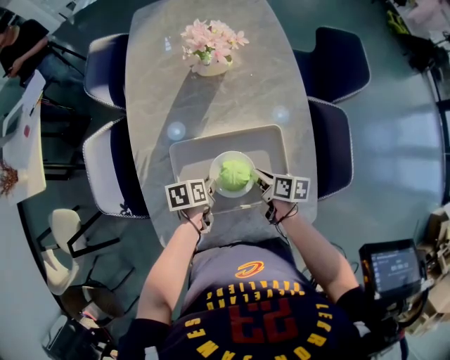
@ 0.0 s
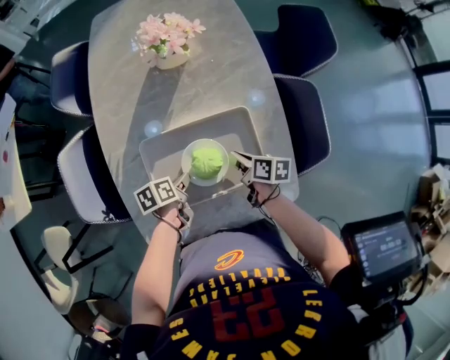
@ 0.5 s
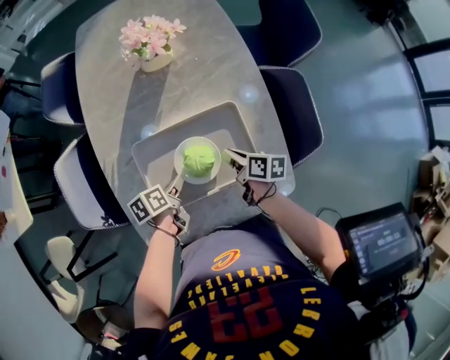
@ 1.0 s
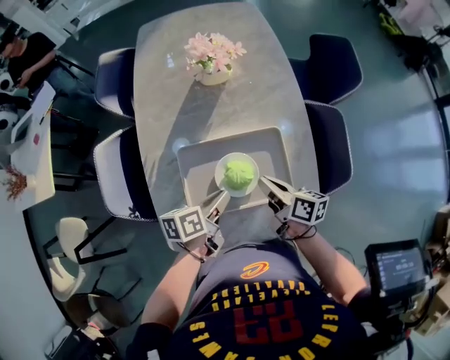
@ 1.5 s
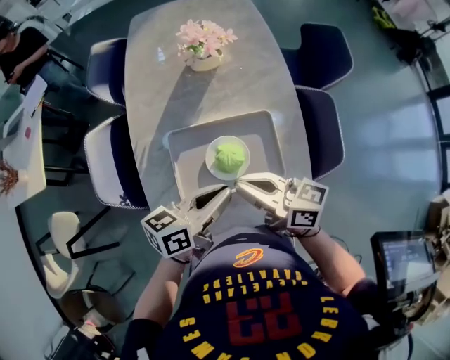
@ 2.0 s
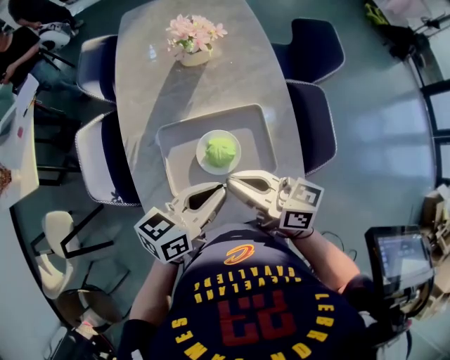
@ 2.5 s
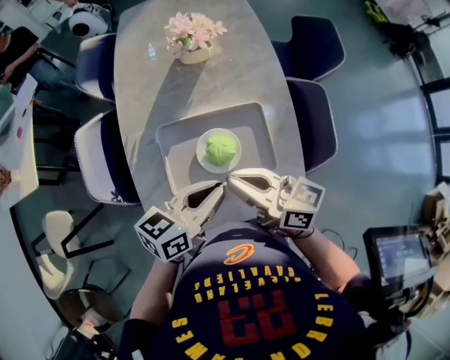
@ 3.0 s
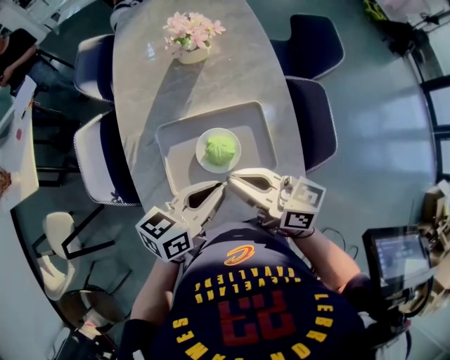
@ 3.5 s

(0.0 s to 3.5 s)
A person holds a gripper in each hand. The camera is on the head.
0.0 s - 2.0 s: The right gripper is displaced upward by about 25 cm, and tilts its fingers approximately 40 degrees upward.

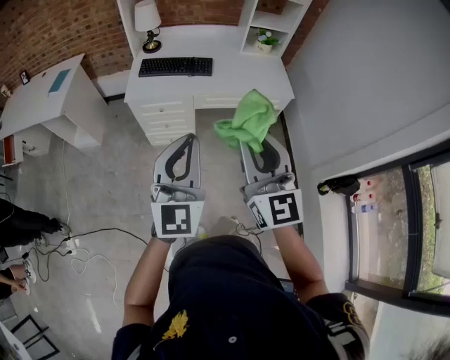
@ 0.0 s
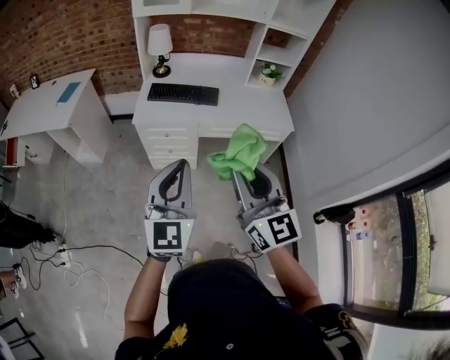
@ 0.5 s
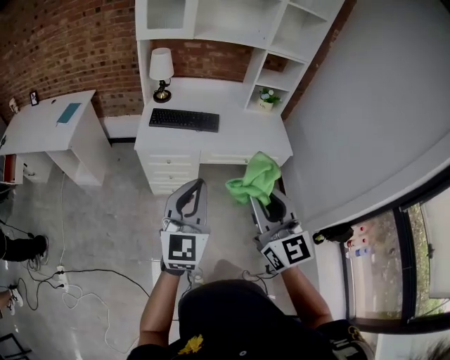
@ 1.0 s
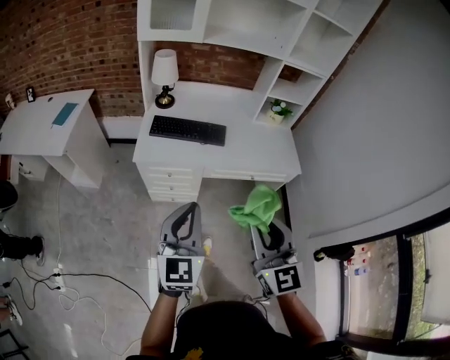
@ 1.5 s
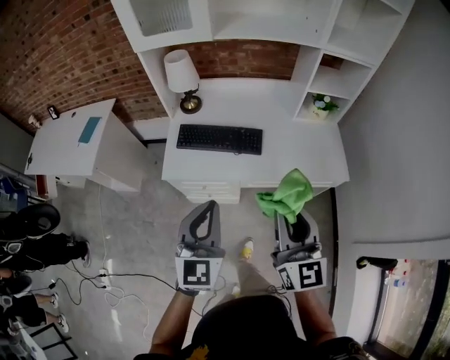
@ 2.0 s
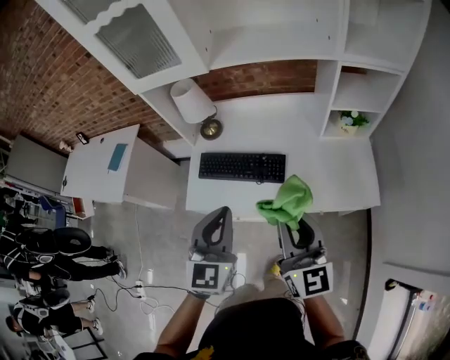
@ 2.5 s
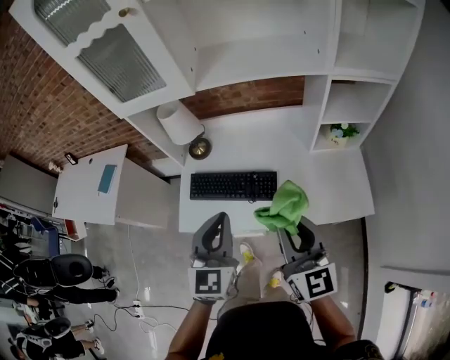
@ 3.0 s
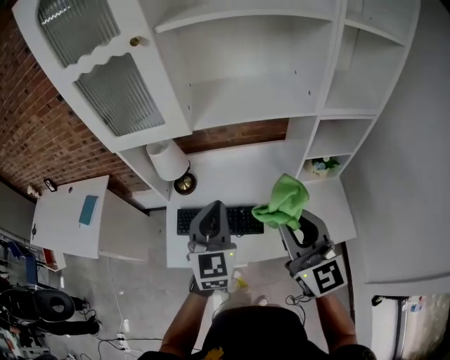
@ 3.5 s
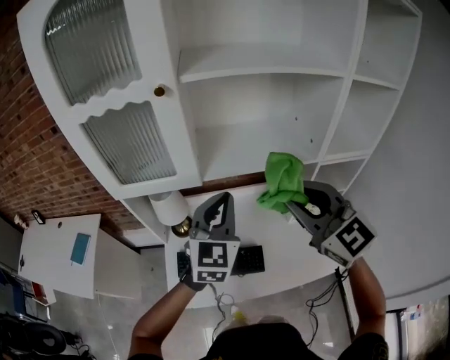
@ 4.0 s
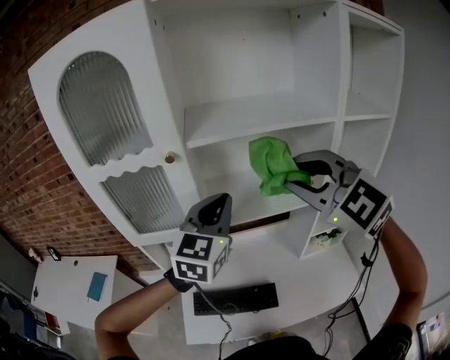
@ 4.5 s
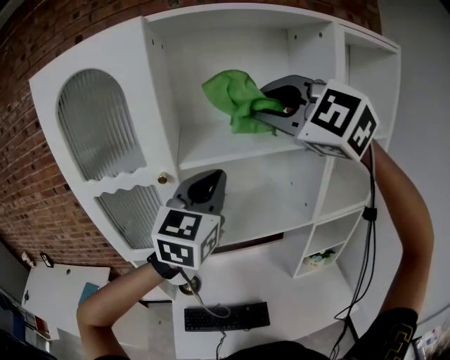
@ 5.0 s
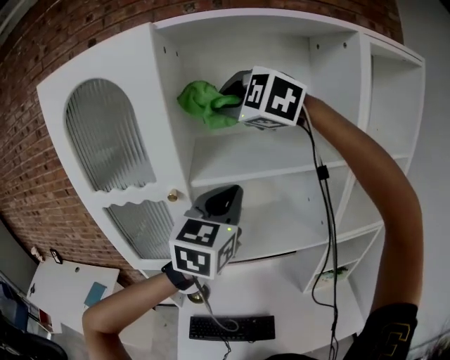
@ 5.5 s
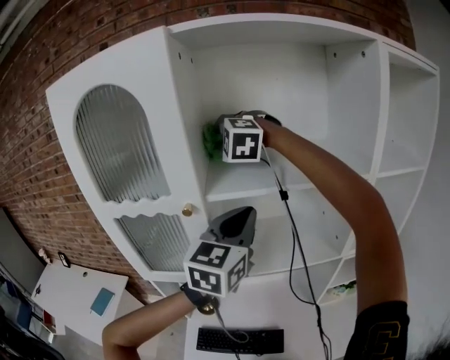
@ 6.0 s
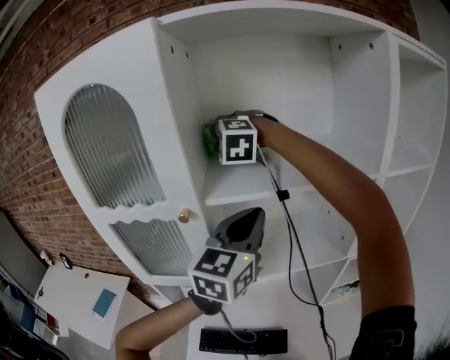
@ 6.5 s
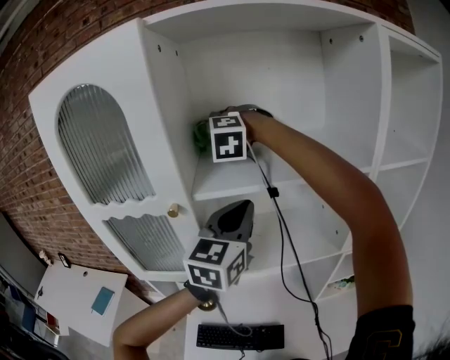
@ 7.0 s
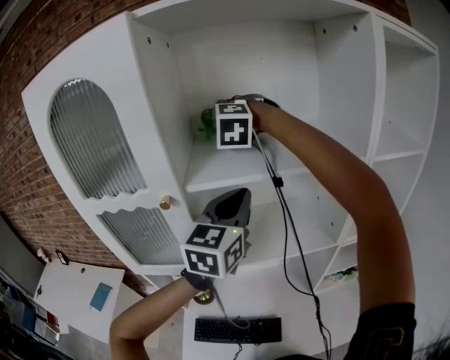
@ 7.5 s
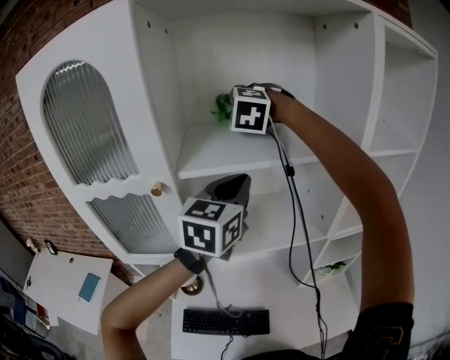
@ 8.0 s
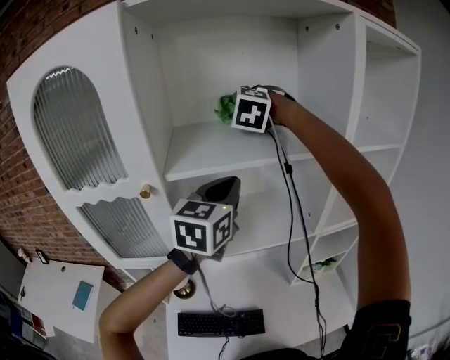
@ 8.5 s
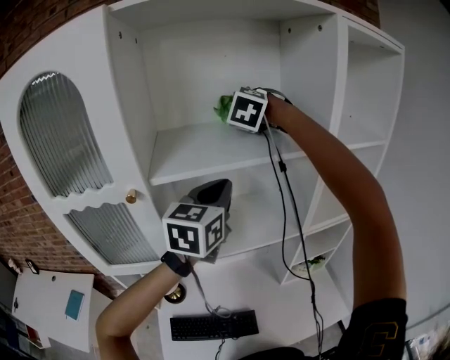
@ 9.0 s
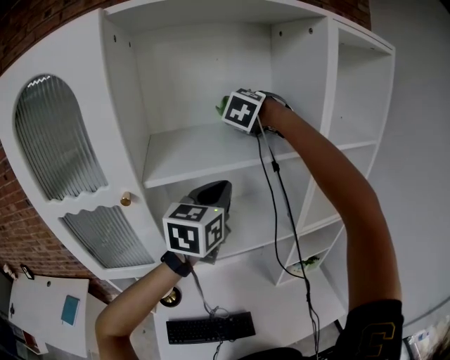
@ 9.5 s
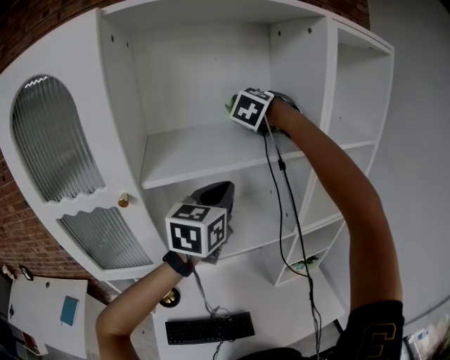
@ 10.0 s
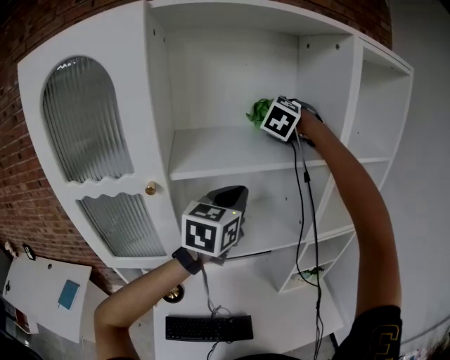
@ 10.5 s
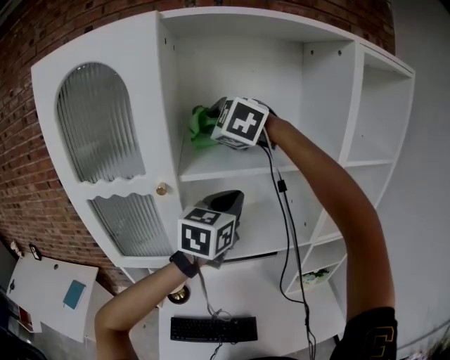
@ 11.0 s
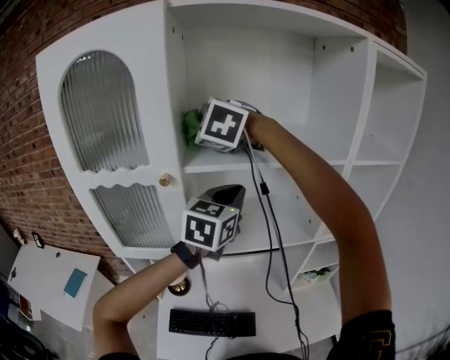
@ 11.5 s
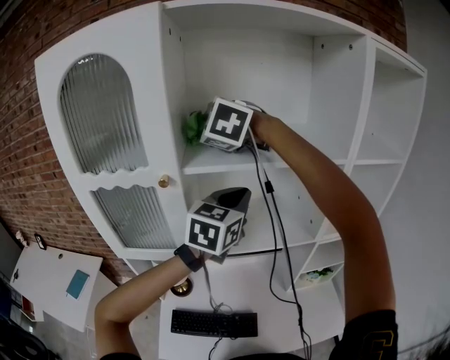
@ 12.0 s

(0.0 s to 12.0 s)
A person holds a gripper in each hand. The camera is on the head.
0.0 s - 2.0 s: The grippers both shift forward by some 30 cm.
2.0 s - 4.0 s: The right gripper goes about 40 cm forward and upward, and rotates some 30 degrees, while the left gripper shifts some 40 cm forward.
4.0 s - 6.0 s: The right gripper goes about 50 cm forward, upward and to the left, and rotates around the line of its fingers by approximately 60 degrees, counterclockwise from behind, while the left gripper moves upward and forward, about 25 cm.
6.0 s - 8.0 s: The right gripper shifts about 10 cm to the right; the left gripper ends up about 5 cm from where it was.
8.0 s - 10.0 s: The right gripper shifts some 20 cm to the right and forward, and turns by about 30 degrees. Meanwhile the left gripper shifts roughly 5 cm to the right.
10.0 s - 12.0 s: The right gripper travels to the left and backward by some 25 cm, and swivels some 40 degrees.

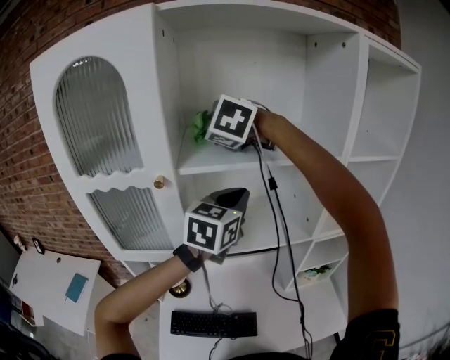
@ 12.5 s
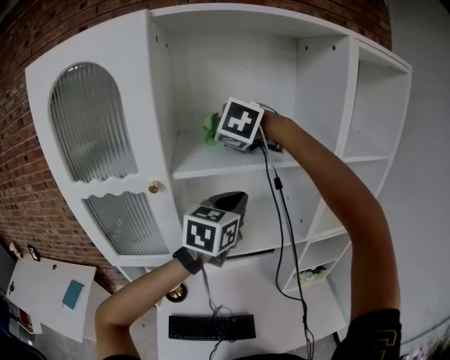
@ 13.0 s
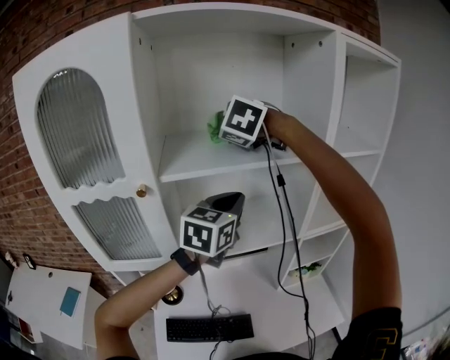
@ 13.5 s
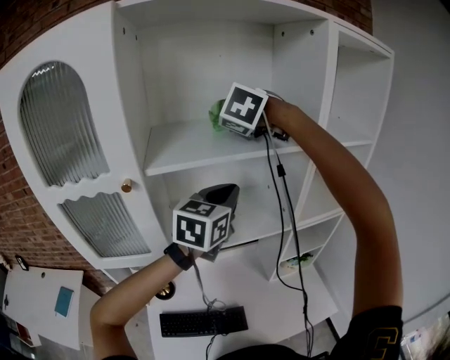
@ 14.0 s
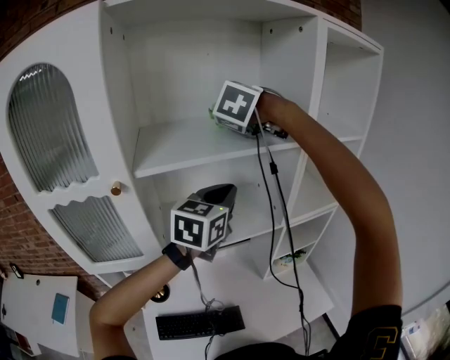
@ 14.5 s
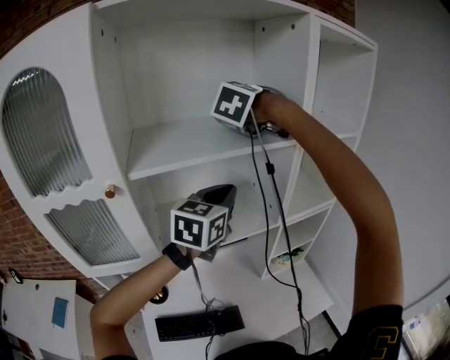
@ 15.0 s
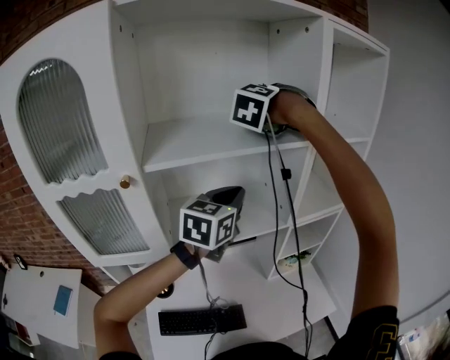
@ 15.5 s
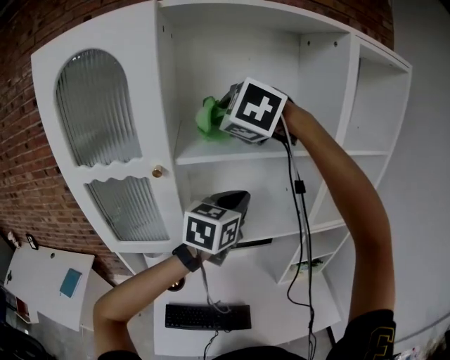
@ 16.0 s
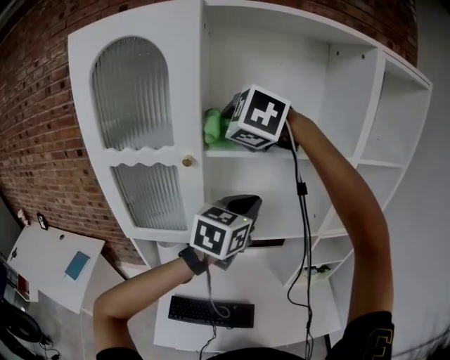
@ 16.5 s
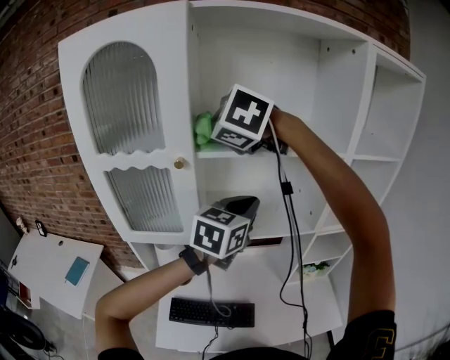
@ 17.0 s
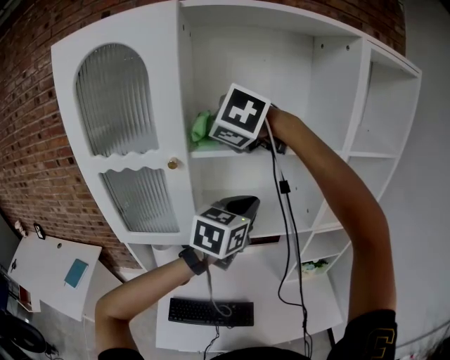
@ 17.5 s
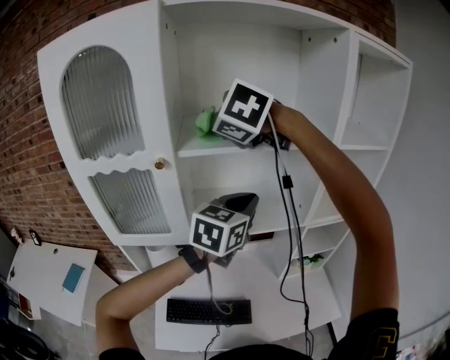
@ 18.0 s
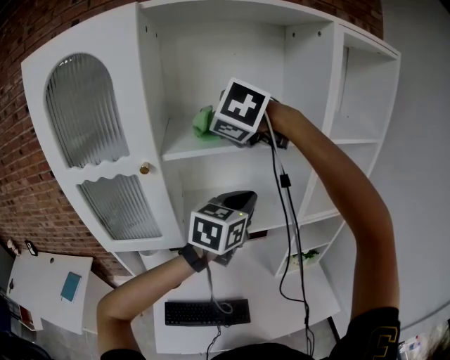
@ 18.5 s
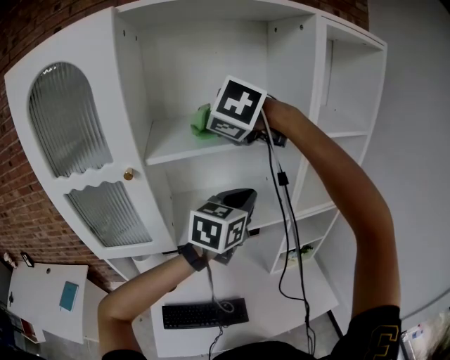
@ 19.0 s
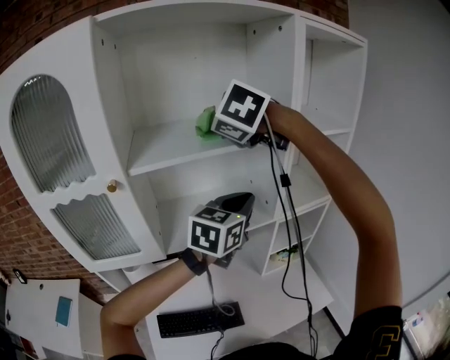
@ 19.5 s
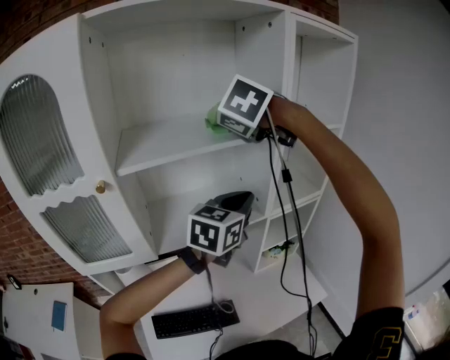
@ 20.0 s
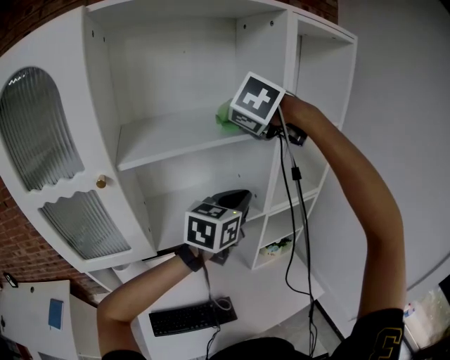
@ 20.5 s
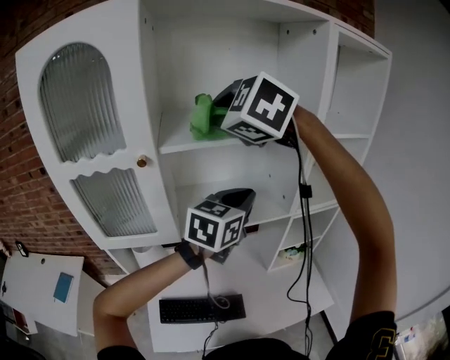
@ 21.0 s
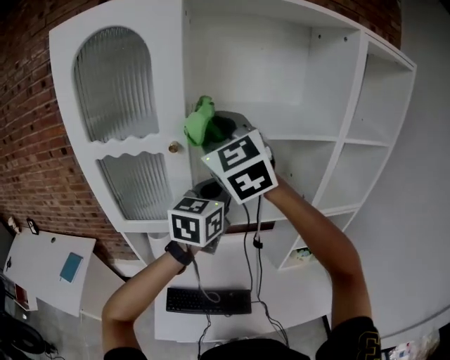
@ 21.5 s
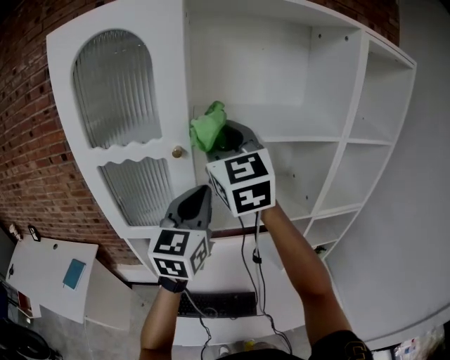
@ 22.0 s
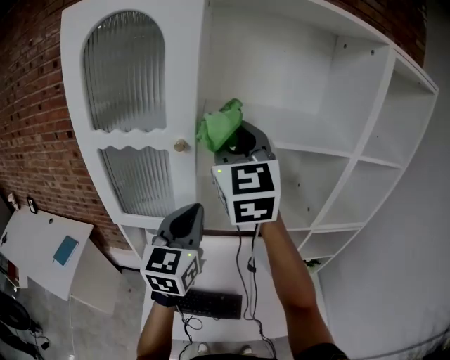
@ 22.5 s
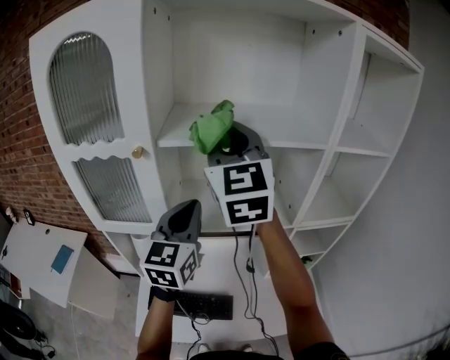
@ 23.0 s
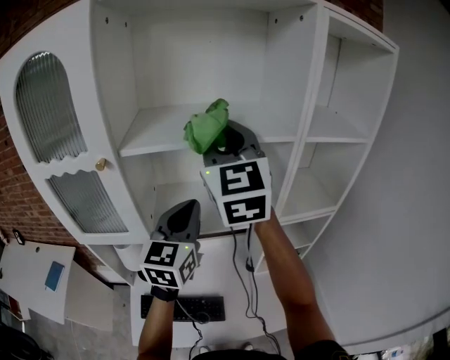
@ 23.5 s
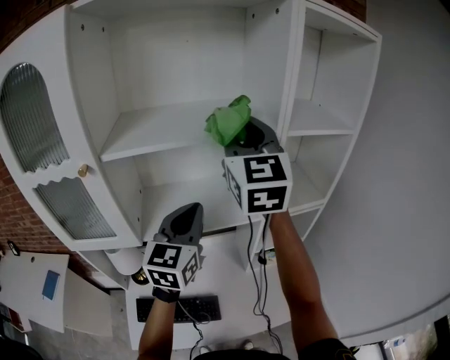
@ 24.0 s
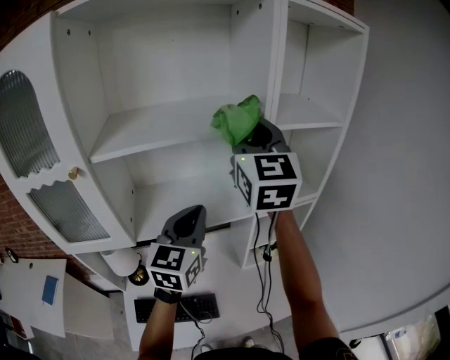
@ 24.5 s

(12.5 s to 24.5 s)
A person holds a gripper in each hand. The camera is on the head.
12.5 s - 14.5 s: The left gripper is displaced to the right by some 5 cm. Meanwhile the right gripper travels to the right and forward by about 20 cm, and swivels approximately 30 degrees.
14.5 s - 16.5 s: The left gripper changes place by roughly 10 cm. The right gripper ends up approximately 25 cm from where it was, and swivels some 40 degrees.
16.5 s - 18.5 s: The two grippers go approximately 10 cm to the right.
18.5 s - 20.5 s: The right gripper travels to the right and forward by about 20 cm, and swivels about 30 degrees. Meanwhile the left gripper is displaced to the right by roughly 10 cm.
20.5 s - 22.5 s: The left gripper changes place by roughly 25 cm, and rotates some 40 degrees; the right gripper changes place by about 25 cm, and tilts its fingers approximately 50 degrees upward.
22.5 s - 24.5 s: The two grippers go about 25 cm to the right.
